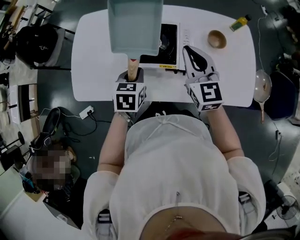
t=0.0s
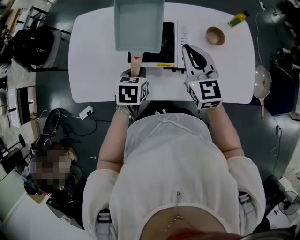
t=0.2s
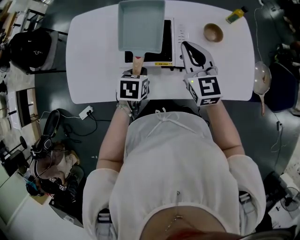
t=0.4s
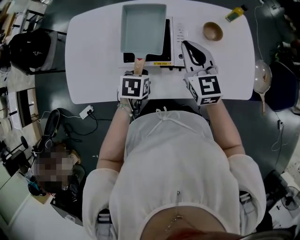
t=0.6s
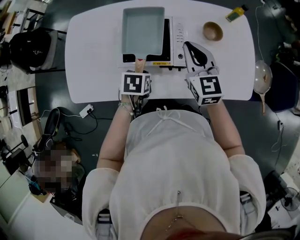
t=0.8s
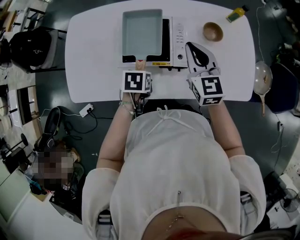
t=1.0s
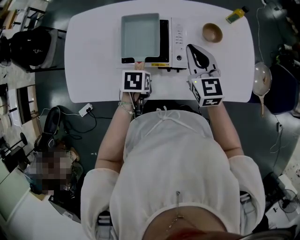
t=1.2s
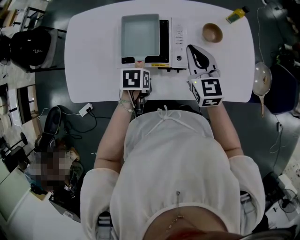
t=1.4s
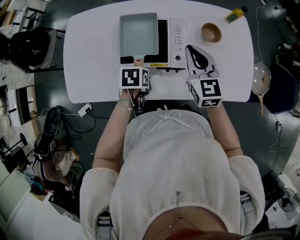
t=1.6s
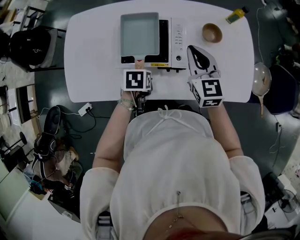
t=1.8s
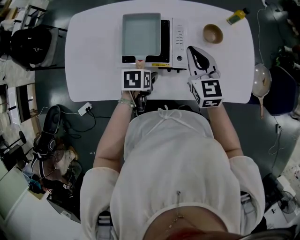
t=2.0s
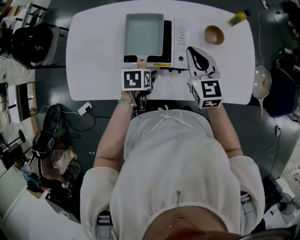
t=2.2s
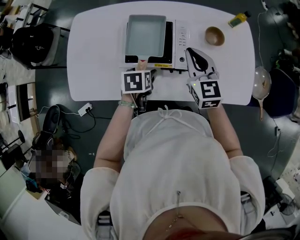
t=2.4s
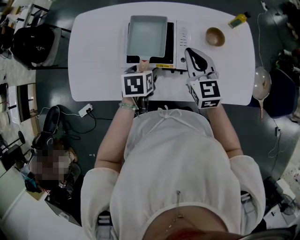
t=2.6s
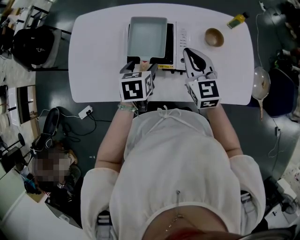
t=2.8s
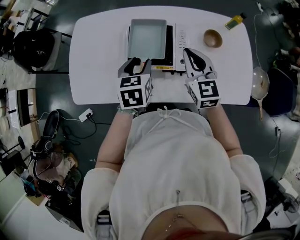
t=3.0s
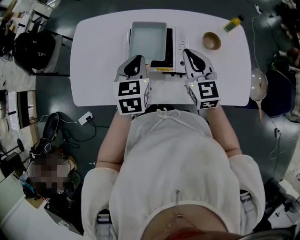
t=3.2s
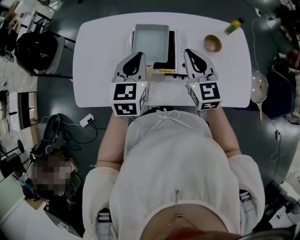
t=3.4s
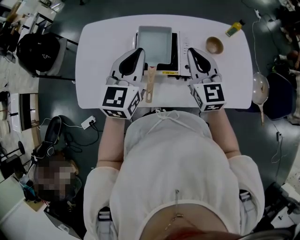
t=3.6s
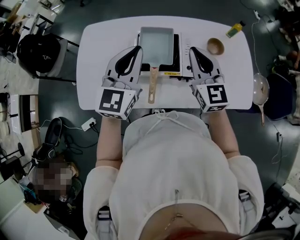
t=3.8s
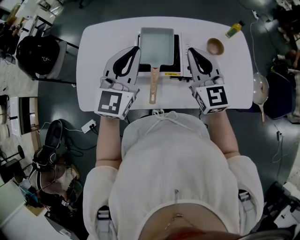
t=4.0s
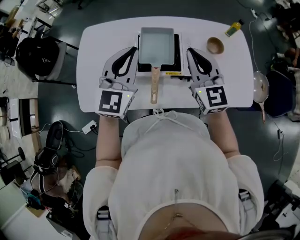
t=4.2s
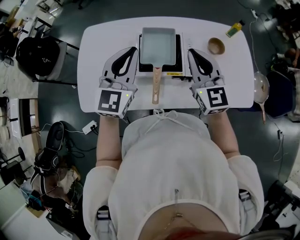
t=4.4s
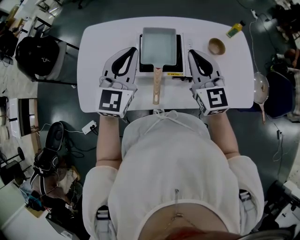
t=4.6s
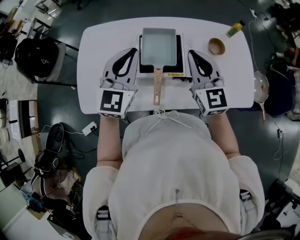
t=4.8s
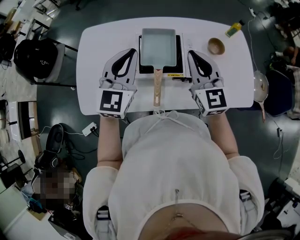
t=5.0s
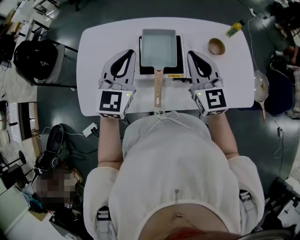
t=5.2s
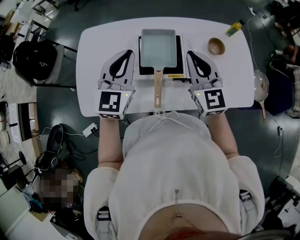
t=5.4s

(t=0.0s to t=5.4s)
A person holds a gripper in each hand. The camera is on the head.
t=0.0s - t=1.4s: The right gripper shifts about 5 cm to the right; the left gripper goes some 10 cm downward and to the right, and changes its angle by roughly 30 degrees.
t=1.4s - t=2.8s: The left gripper travels upward by about 10 cm, changes its angle by approximately 30 degrees, and opens its fingers.
t=2.8s - t=4.0s: The left gripper goes about 20 cm upward, tilts its fingers roughly 50 degrees upward, and closes up. The right gripper travels upward by about 10 cm.
t=4.0s - t=5.4s: The left gripper shifts by approximately 5 cm.

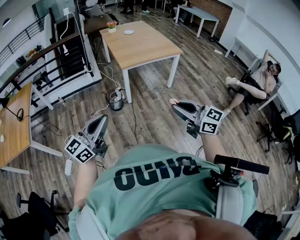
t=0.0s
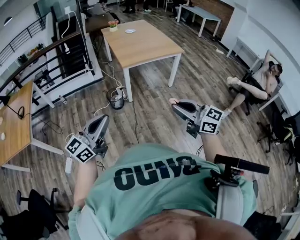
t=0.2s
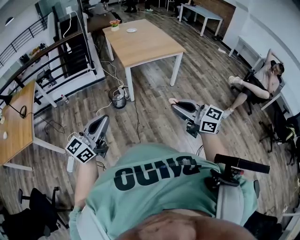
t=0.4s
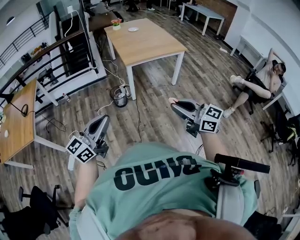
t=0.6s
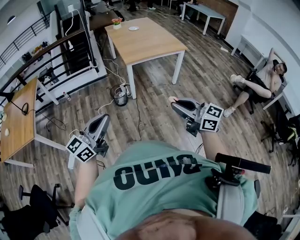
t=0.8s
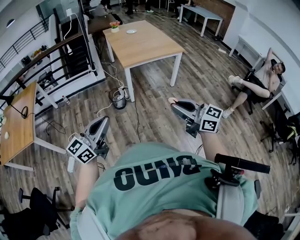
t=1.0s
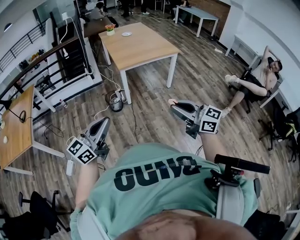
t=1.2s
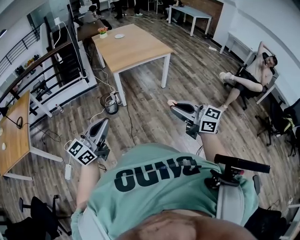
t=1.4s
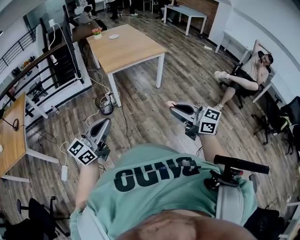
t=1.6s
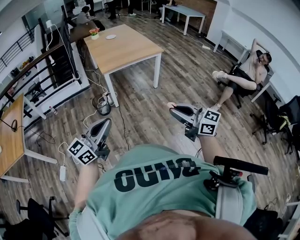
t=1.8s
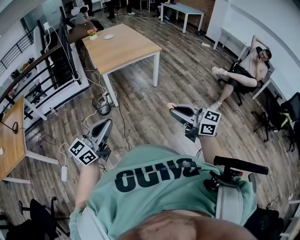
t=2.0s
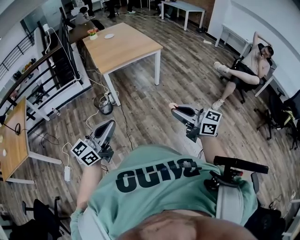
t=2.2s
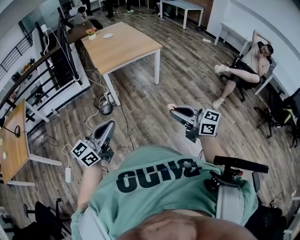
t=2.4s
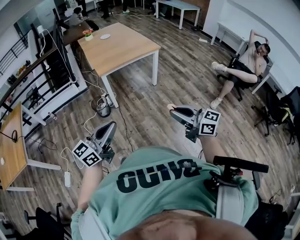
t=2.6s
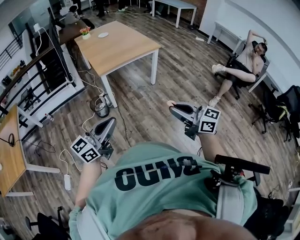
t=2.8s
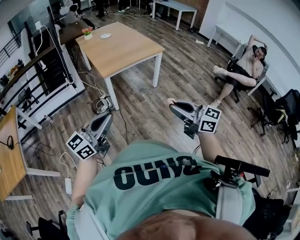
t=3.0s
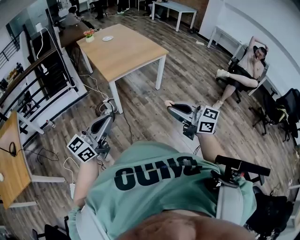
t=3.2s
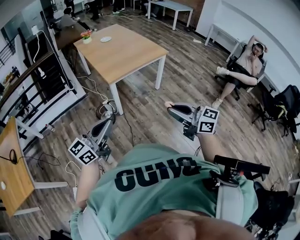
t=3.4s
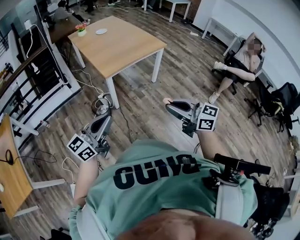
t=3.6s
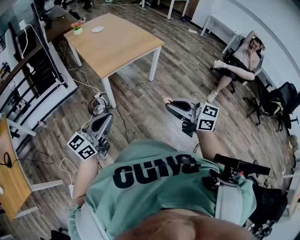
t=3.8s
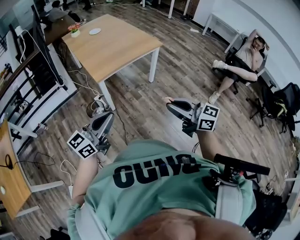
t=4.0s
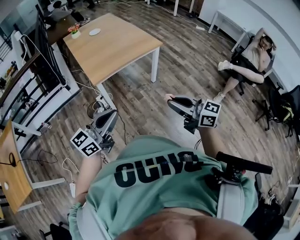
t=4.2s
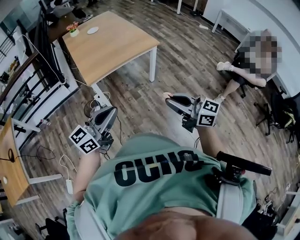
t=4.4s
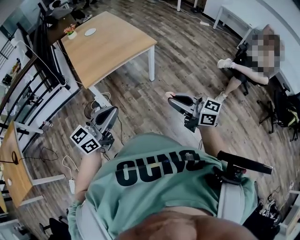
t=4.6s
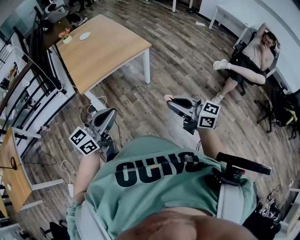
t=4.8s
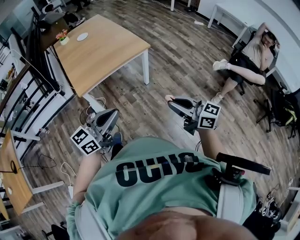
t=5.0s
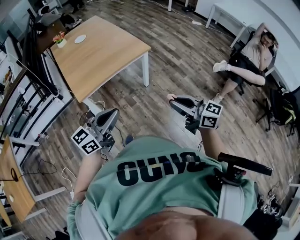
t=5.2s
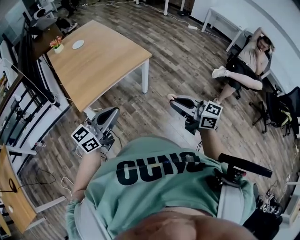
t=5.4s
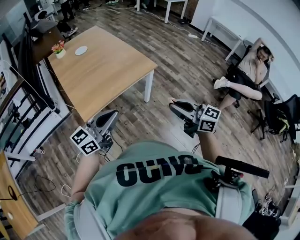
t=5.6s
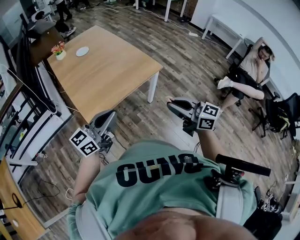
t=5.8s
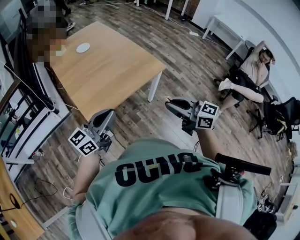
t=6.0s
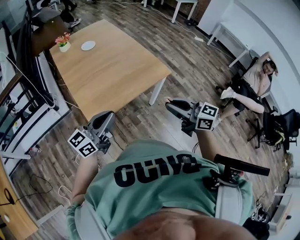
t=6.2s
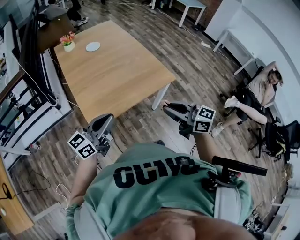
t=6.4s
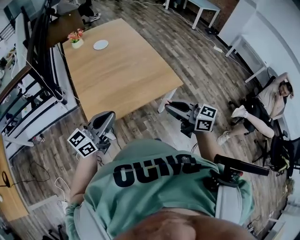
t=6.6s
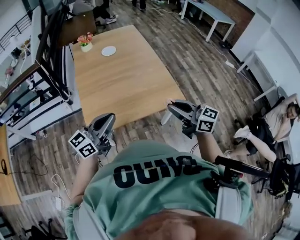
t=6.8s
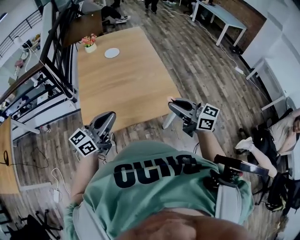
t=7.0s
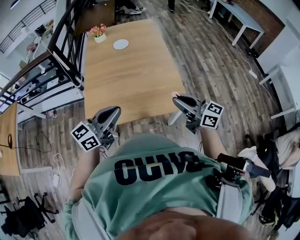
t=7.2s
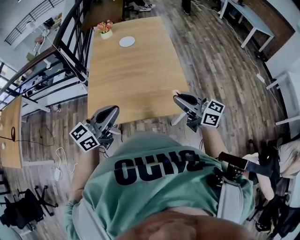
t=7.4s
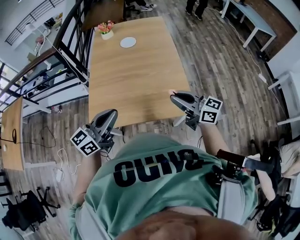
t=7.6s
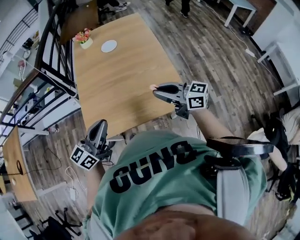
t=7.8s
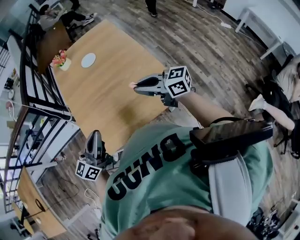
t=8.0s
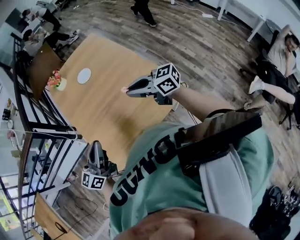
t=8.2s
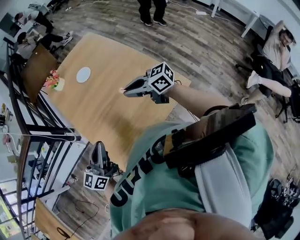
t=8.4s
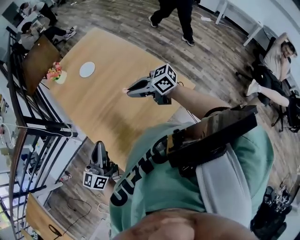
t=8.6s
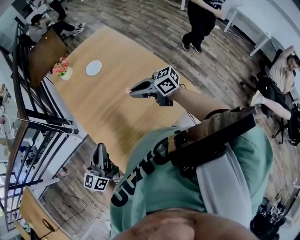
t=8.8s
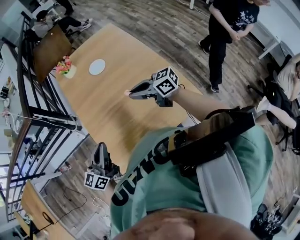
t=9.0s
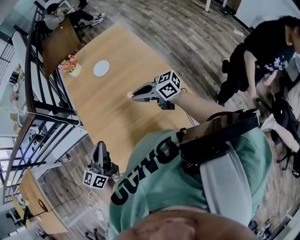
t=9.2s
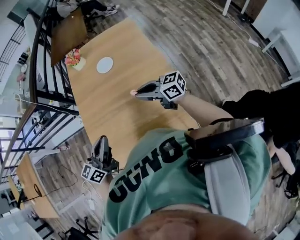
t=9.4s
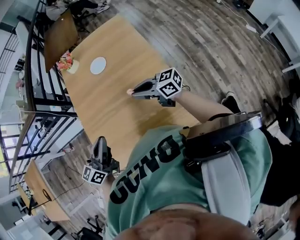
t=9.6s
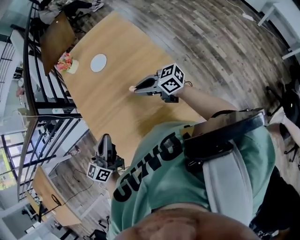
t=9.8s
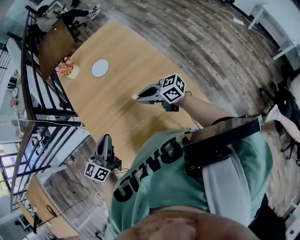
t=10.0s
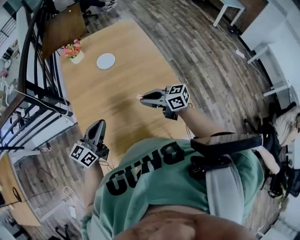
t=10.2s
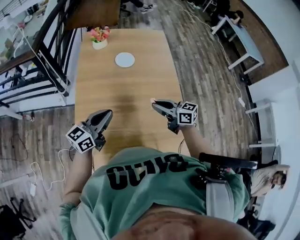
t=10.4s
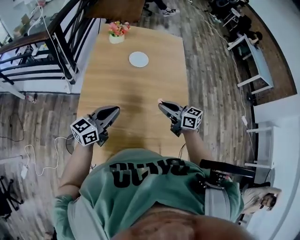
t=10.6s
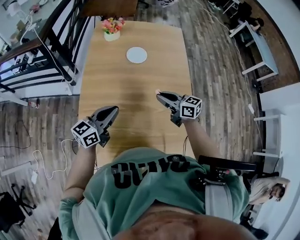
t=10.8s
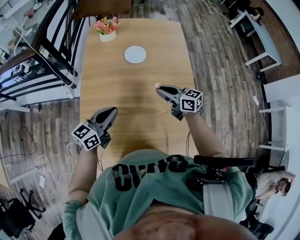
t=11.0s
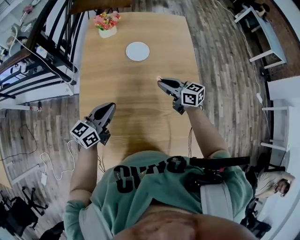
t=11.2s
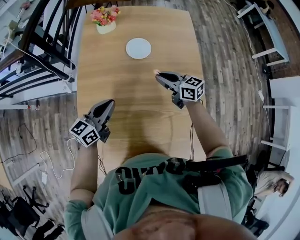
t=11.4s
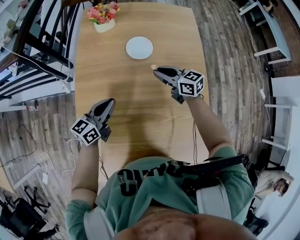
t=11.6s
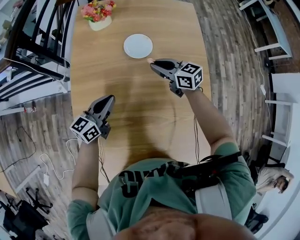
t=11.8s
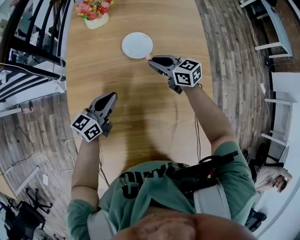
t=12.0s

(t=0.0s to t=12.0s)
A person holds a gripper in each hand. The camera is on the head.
t=0.0s - t=1.6s: The left gripper goes approximately 15 cm to the right. Meanwhile the right gripper goes some 15 cm to the right and backward.
t=1.6s - t=3.0s: Both grippers move forward and to the left, some 15 cm.
t=3.0s - t=4.4s: The grippers both shift forward and to the right by some 25 cm.
t=4.4s - t=6.0s: Both grippers move forward, about 35 cm.
t=6.0s - t=7.6s: The right gripper shifts by about 40 cm, and changes its angle by about 30 degrees. Meanwhile the left gripper shifts by about 25 cm, and rotates roughly 30 degrees.
t=7.6s - t=9.0s: The left gripper is displaced forward, to the left and downward by roughly 25 cm. Meanwhile the right gripper is displaced forward and to the left by roughly 25 cm.
t=9.0s - t=10.4s: The right gripper goes roughly 10 cm forward and to the right. Meanwhile the left gripper is displaced forward and to the right by some 15 cm.
t=10.4s - t=12.0s: The grippers both shift forward and downward by approximately 35 cm.

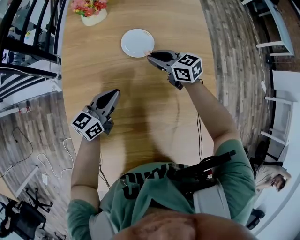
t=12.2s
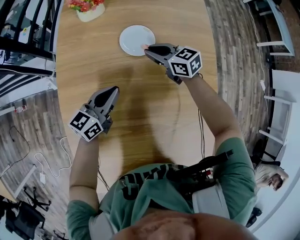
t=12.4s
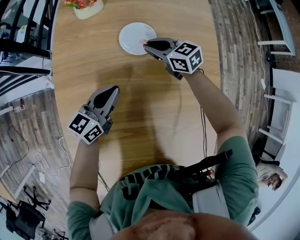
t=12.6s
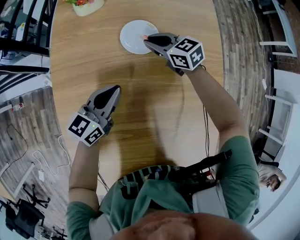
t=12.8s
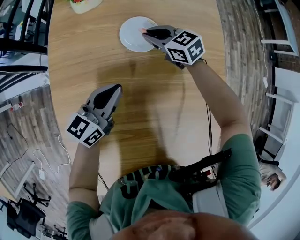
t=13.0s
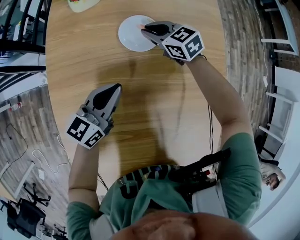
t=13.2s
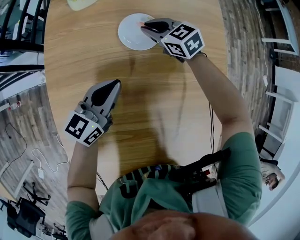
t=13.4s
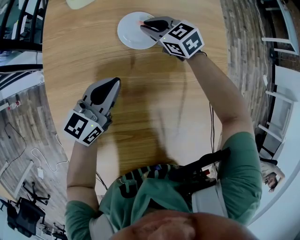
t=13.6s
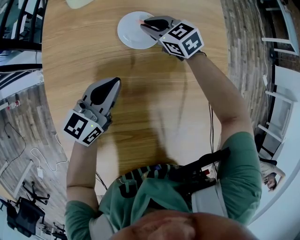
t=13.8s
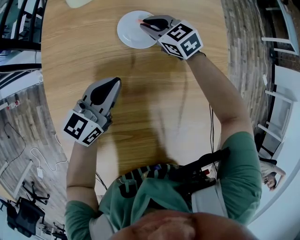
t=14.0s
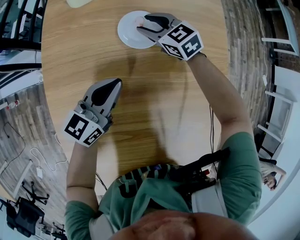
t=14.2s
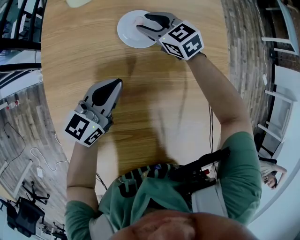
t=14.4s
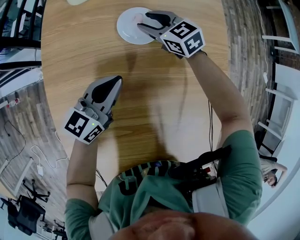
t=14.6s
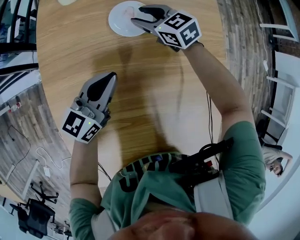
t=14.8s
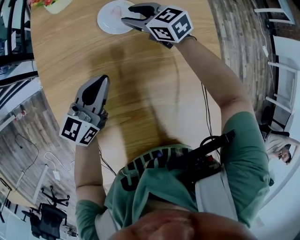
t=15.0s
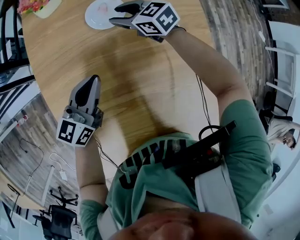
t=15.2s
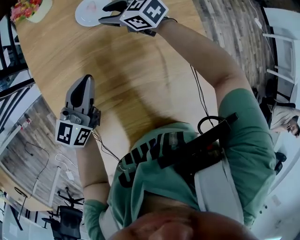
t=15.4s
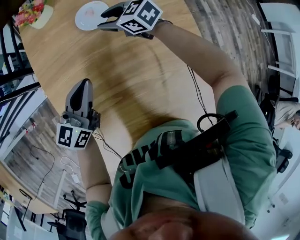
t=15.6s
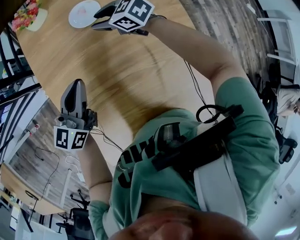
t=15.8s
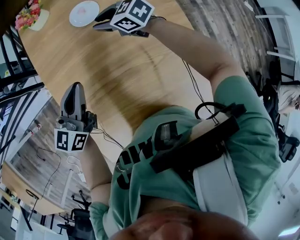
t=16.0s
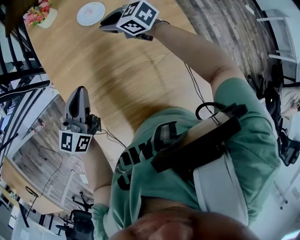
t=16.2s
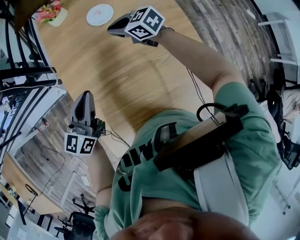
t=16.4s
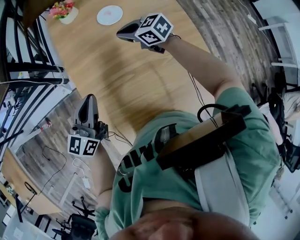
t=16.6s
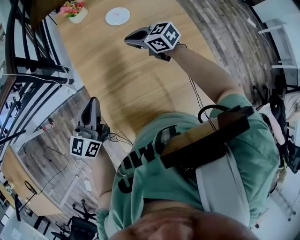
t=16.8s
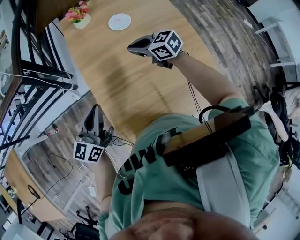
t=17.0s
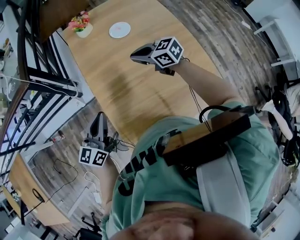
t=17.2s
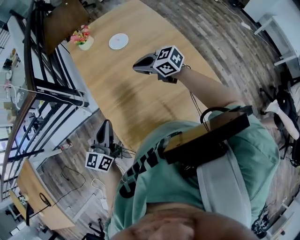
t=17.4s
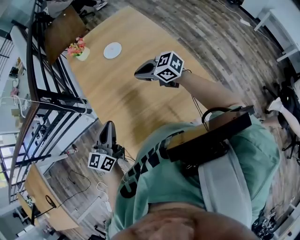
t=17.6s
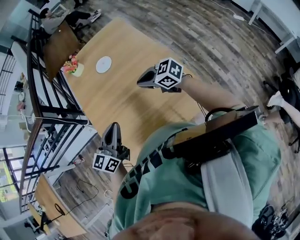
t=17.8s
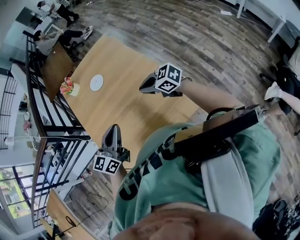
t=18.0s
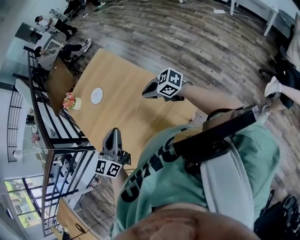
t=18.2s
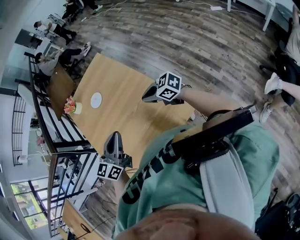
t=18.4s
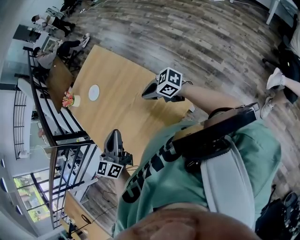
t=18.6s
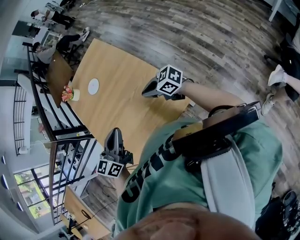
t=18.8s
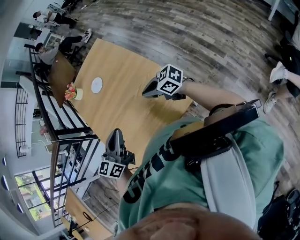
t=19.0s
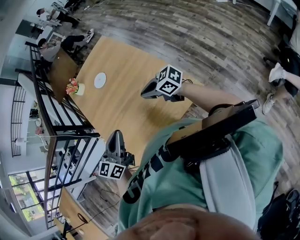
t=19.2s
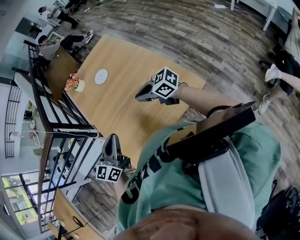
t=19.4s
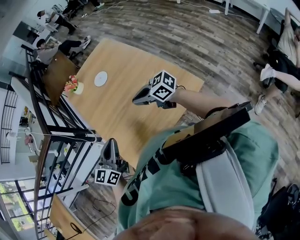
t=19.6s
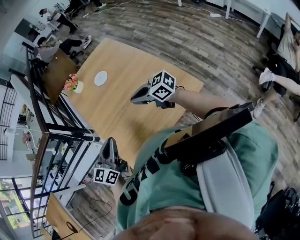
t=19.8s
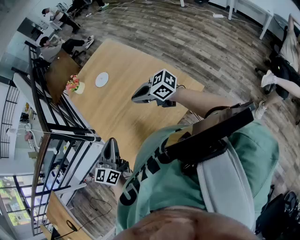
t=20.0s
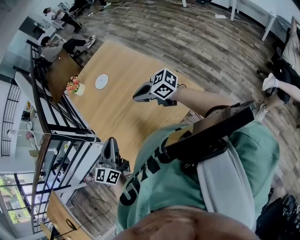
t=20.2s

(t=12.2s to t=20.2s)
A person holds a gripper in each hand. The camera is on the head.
t=12.2s - t=13.8s: The right gripper heads forward and downward, covering some 15 cm, and changes its angle by roughly 20 degrees. The left gripper heads forward, covering about 5 cm.
t=13.8s - t=15.4s: The two grippers go some 10 cm backward and upward. The right gripper opens up.
t=15.4s - t=17.0s: The right gripper heads backward, upward and to the left, covering approximately 30 cm, and closes its fingers, while the left gripper goes some 35 cm to the left, backward and upward.
t=17.0s - t=18.6s: The two grippers travel together, to the right and backward, approximately 50 cm.
t=18.6s - t=20.2s: Both grippers travel together to the left, about 25 cm.
